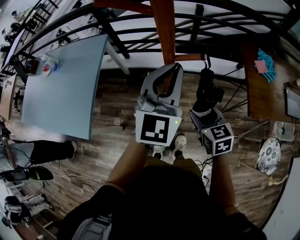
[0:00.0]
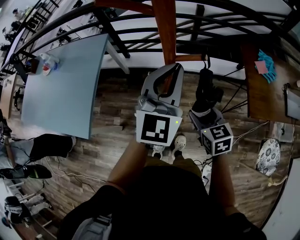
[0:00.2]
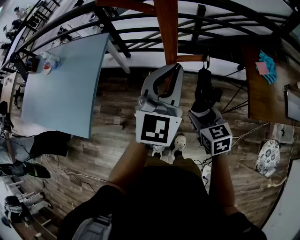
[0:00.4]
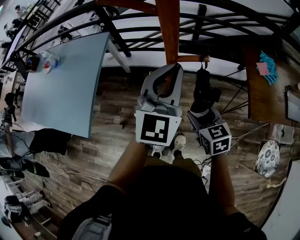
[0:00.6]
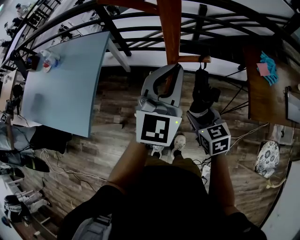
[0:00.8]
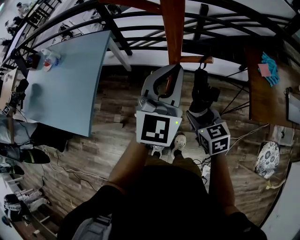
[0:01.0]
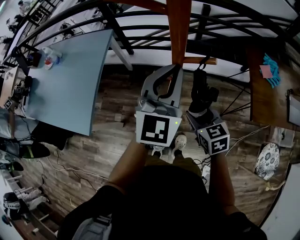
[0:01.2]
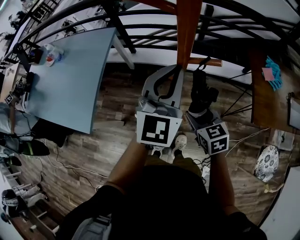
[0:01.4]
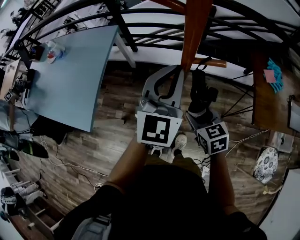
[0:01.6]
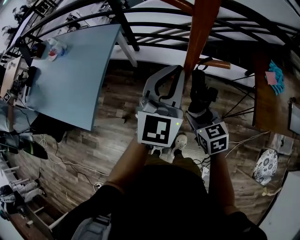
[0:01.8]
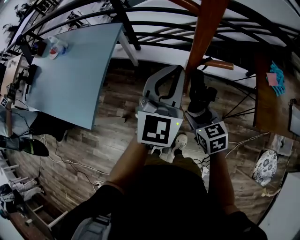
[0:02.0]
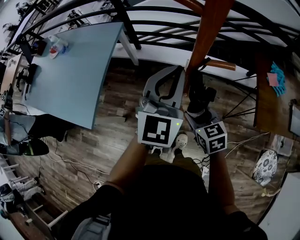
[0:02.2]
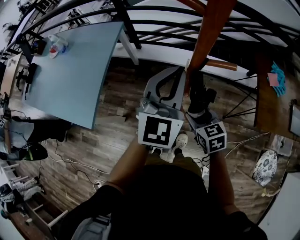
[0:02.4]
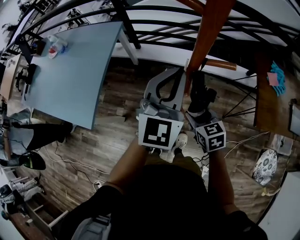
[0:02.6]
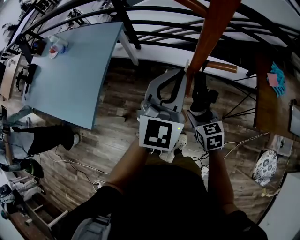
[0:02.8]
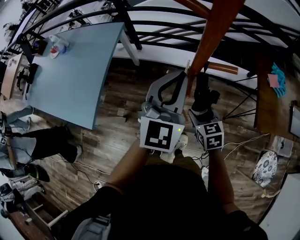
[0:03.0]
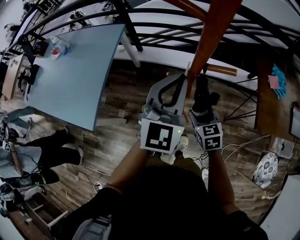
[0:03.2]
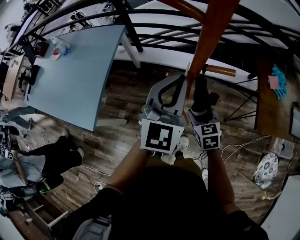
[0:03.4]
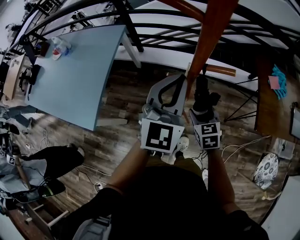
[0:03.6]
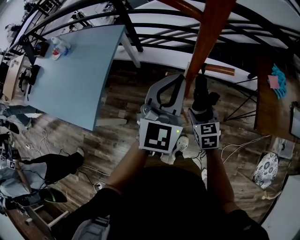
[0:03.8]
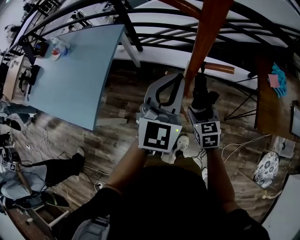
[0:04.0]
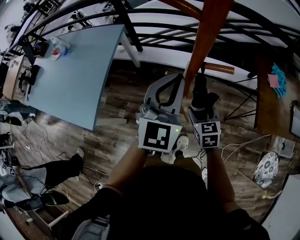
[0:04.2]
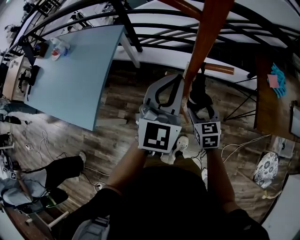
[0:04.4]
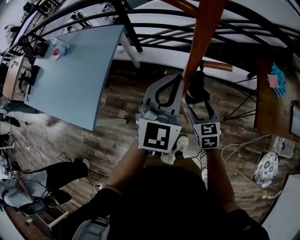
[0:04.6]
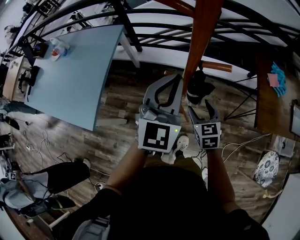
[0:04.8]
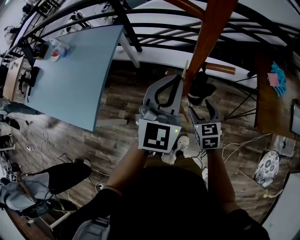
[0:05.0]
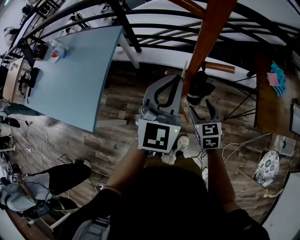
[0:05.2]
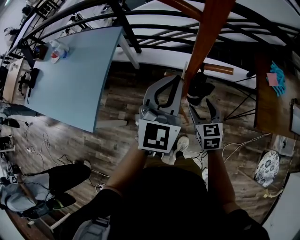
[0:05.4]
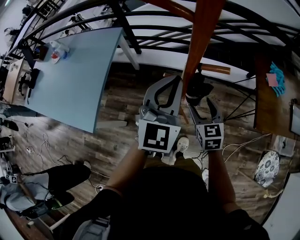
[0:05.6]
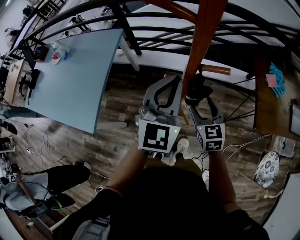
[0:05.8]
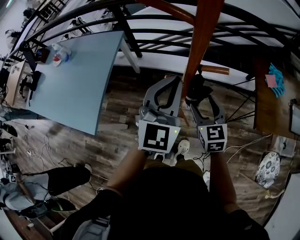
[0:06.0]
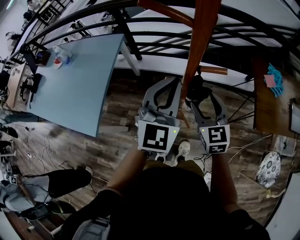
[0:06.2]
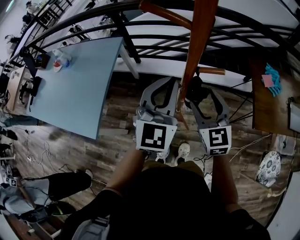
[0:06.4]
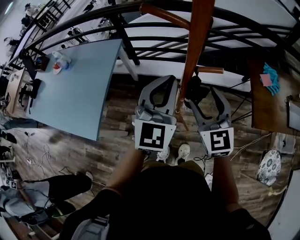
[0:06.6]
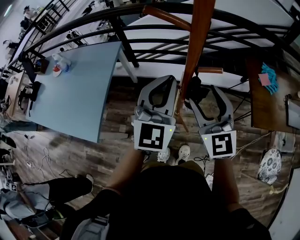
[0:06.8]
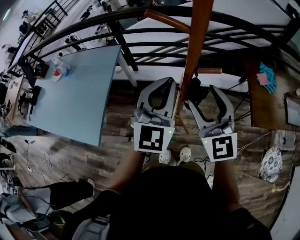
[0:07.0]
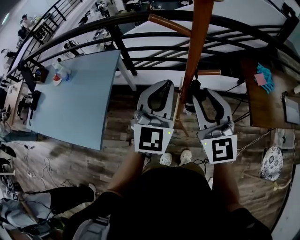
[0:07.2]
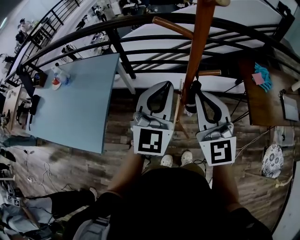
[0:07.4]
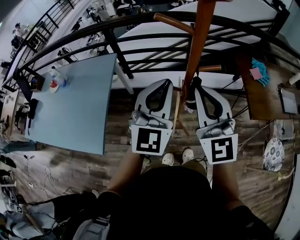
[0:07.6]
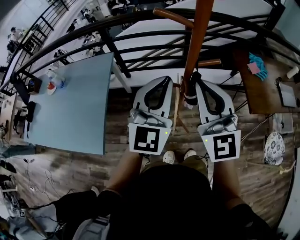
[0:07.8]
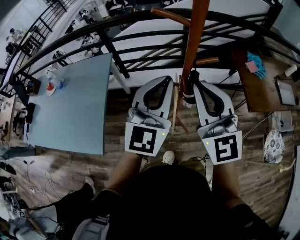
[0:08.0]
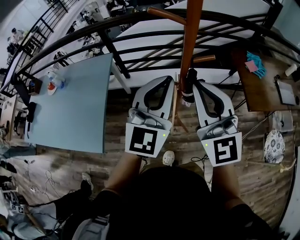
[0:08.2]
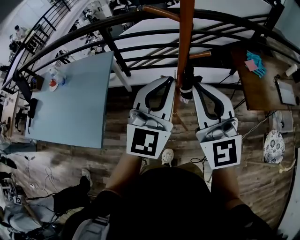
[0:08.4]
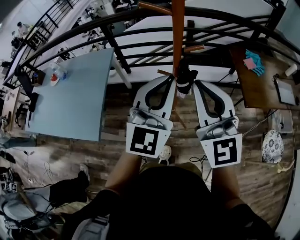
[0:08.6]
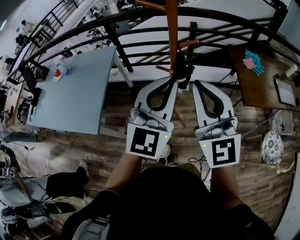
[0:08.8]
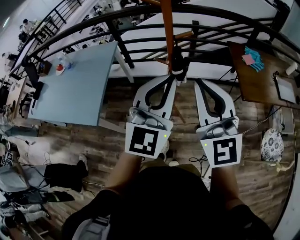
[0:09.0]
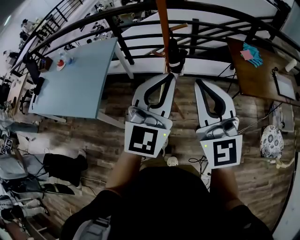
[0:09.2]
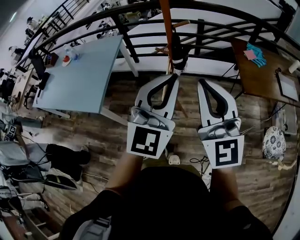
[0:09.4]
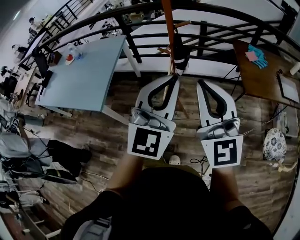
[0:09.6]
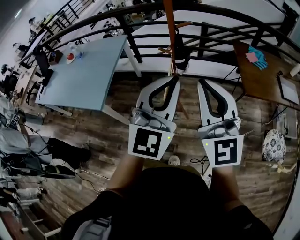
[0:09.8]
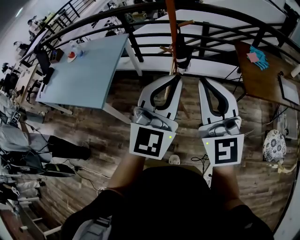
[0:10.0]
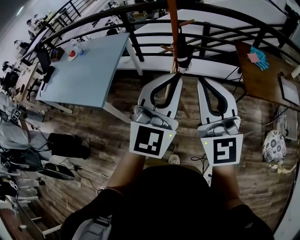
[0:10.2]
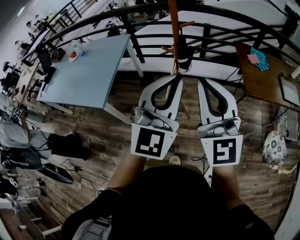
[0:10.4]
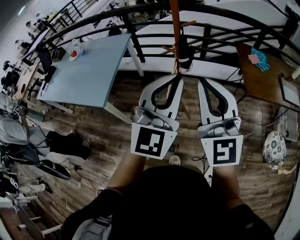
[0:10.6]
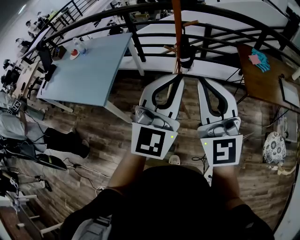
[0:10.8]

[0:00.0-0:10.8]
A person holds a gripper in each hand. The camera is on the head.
0:00.0 to 0:01.6: The right gripper is displaced to the left by roughly 5 cm.
0:01.6 to 0:04.6: There are only small adjustments of the grippers.
0:04.6 to 0:06.2: The right gripper shifts some 10 cm upward.
0:06.2 to 0:07.8: The right gripper heads upward, covering about 20 cm, changes its angle by roughly 30 degrees, and closes up. Meanwhile the left gripper travels upward by roughly 5 cm.
0:07.8 to 0:09.2: Both grippers move backward and to the right, approximately 25 cm.
0:09.2 to 0:10.8: The two grippers go roughly 5 cm backward.

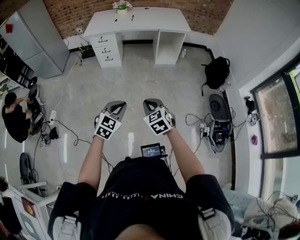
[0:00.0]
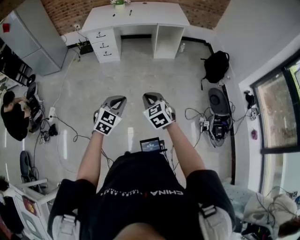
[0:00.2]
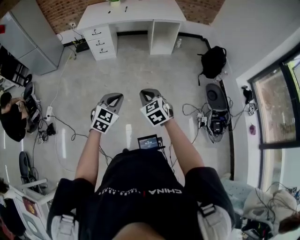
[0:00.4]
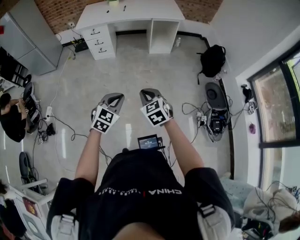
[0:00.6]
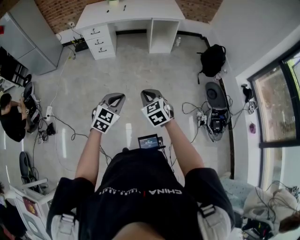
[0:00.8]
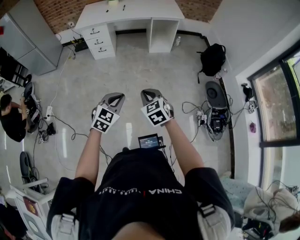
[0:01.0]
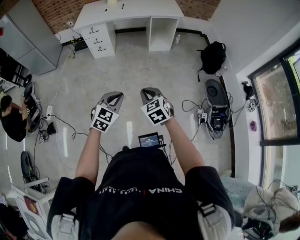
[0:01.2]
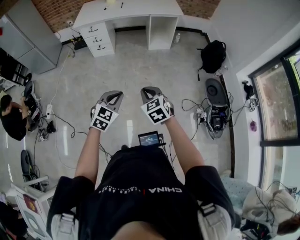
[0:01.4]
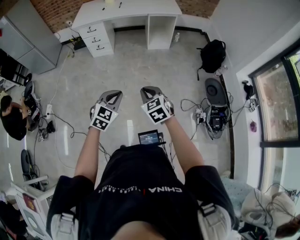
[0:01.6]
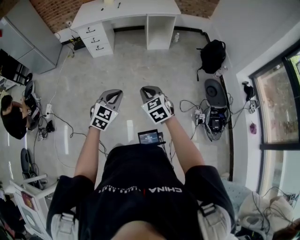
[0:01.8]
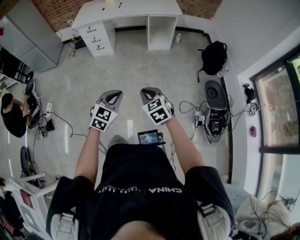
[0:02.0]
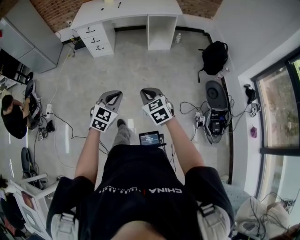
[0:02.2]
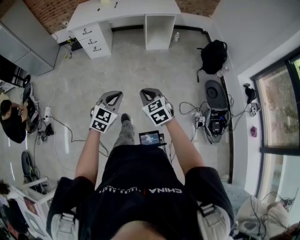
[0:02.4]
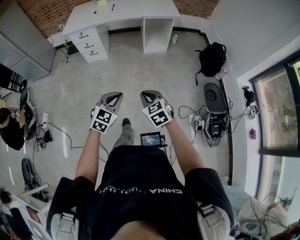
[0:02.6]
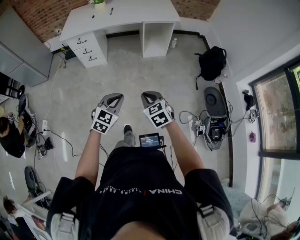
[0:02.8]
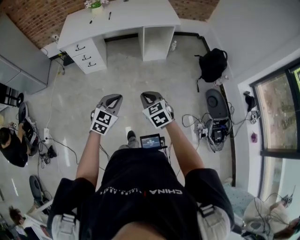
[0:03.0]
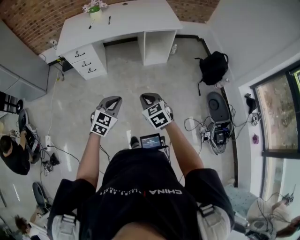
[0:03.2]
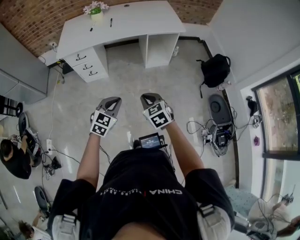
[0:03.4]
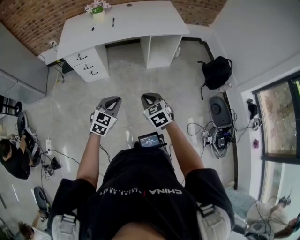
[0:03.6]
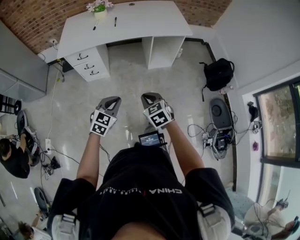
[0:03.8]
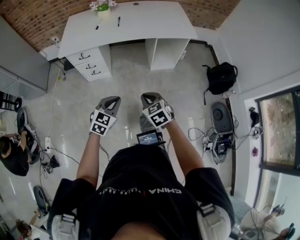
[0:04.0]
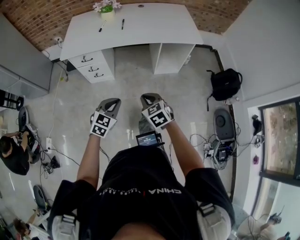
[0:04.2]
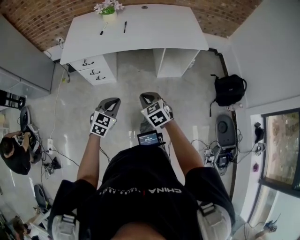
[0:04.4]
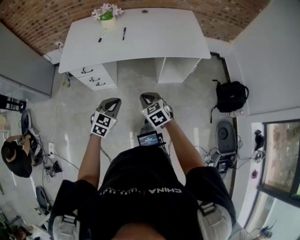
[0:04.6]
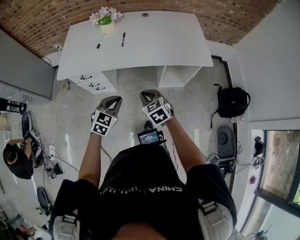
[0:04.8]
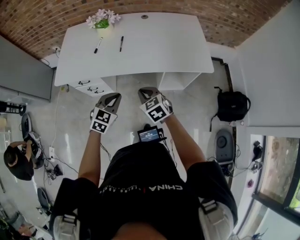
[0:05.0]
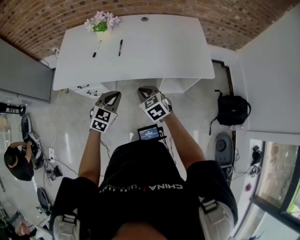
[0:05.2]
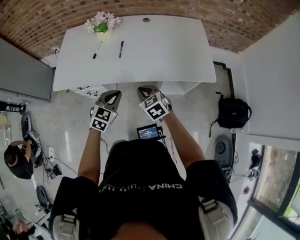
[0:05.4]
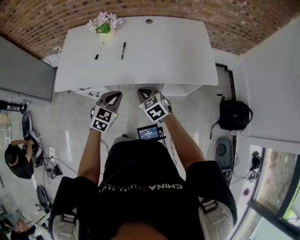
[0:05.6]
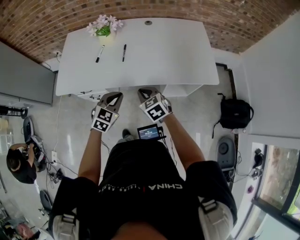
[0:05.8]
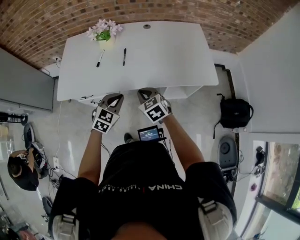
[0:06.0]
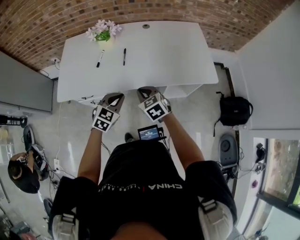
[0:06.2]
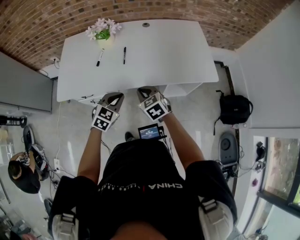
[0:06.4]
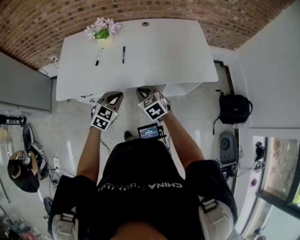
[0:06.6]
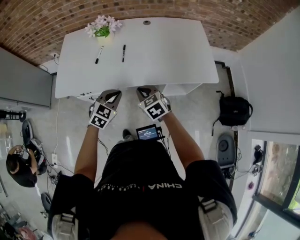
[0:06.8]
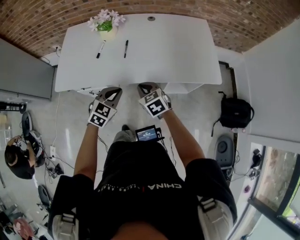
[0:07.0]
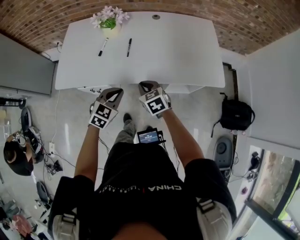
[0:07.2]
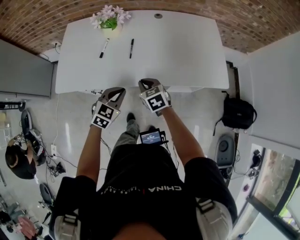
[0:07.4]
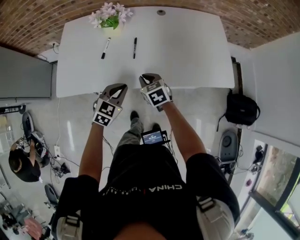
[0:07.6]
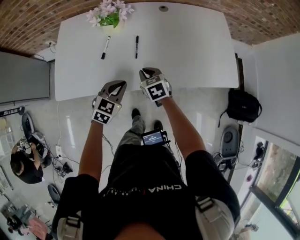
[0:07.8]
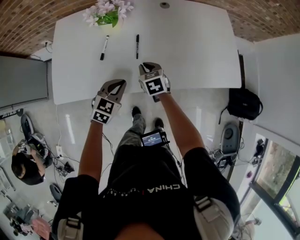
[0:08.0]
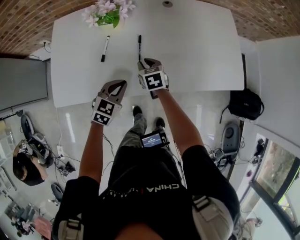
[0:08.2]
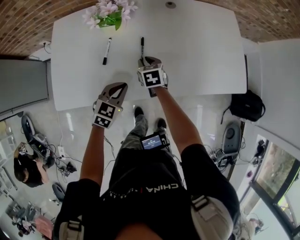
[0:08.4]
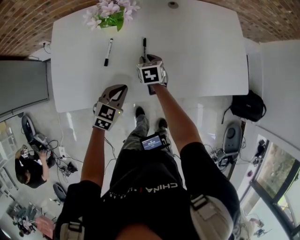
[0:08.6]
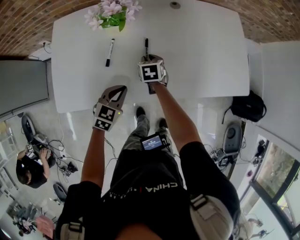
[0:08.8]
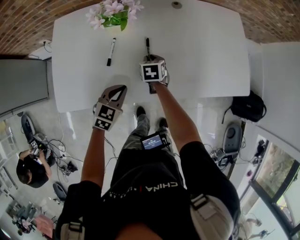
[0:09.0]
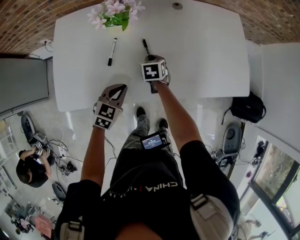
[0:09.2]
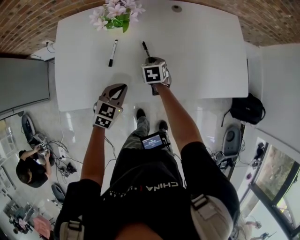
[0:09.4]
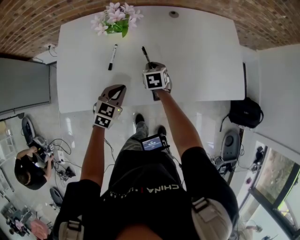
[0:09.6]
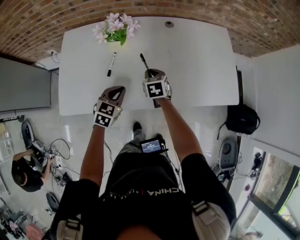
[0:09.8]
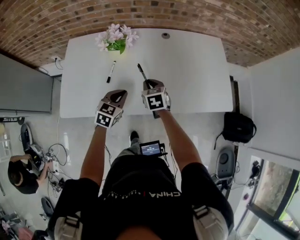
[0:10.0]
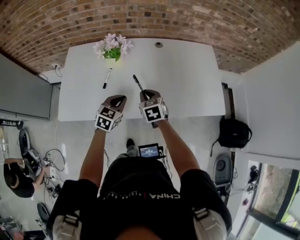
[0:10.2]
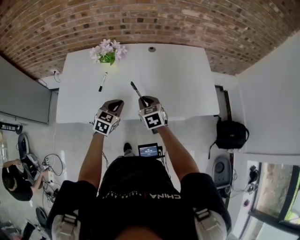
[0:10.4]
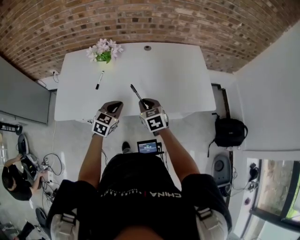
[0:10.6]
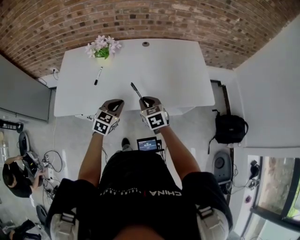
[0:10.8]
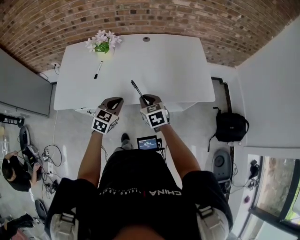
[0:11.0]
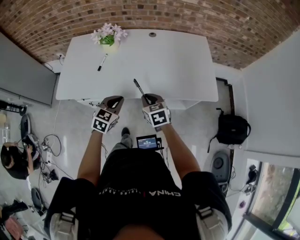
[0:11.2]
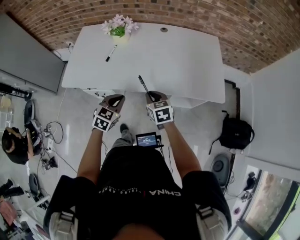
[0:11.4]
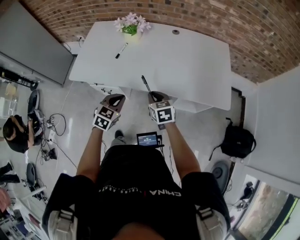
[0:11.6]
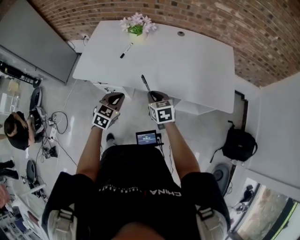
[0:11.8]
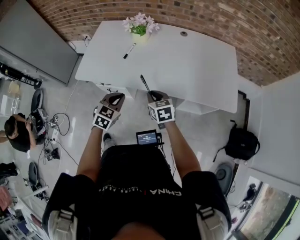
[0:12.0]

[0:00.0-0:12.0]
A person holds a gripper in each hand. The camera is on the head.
0:00.0 to 0:01.6: The grippers both shift to the right by some 10 cm.
0:01.6 to 0:03.0: Both grippers travel together forward, some 30 cm.
0:03.0 to 0:04.4: The right gripper travels forward by approximately 30 cm. Meanwhile the left gripper travels forward and to the left by approximately 35 cm.
0:04.4 to 0:06.0: The two grippers go about 35 cm forward.
0:06.0 to 0:07.6: The left gripper goes about 10 cm forward; the right gripper heads forward, downward and to the left, covering some 15 cm.
0:07.6 to 0:09.0: The right gripper moves forward and downward, about 20 cm, and changes its angle by about 30 degrees; the left gripper shifts approximately 15 cm to the left, forward and downward.
0:09.0 to 0:10.4: The right gripper is displaced upward, backward and to the right by some 25 cm, and turns by about 20 degrees. Meanwhile the left gripper shifts approximately 15 cm upward and to the right.
0:10.4 to 0:12.0: Both grippers move backward, approximately 15 cm.

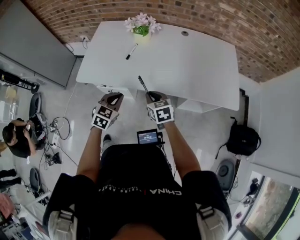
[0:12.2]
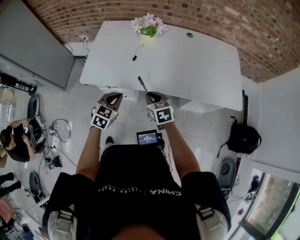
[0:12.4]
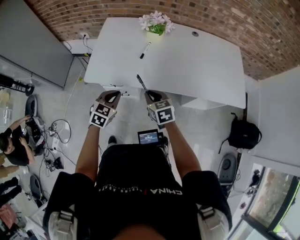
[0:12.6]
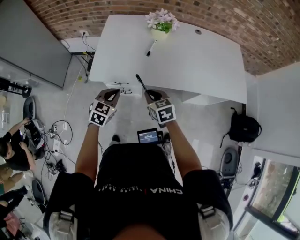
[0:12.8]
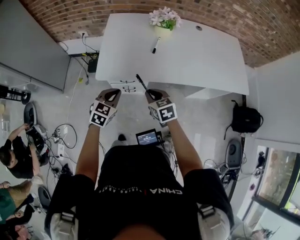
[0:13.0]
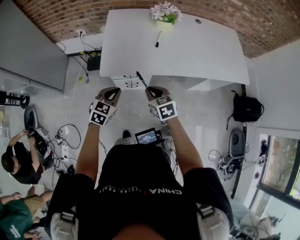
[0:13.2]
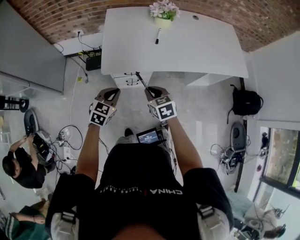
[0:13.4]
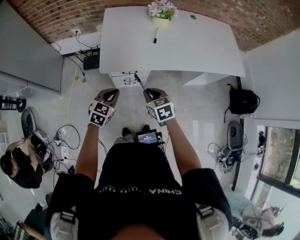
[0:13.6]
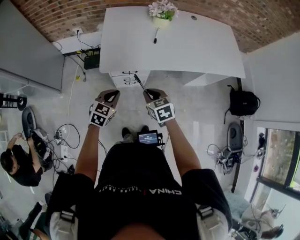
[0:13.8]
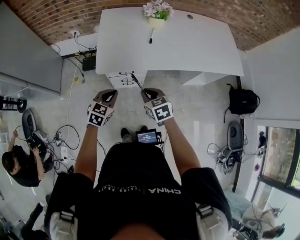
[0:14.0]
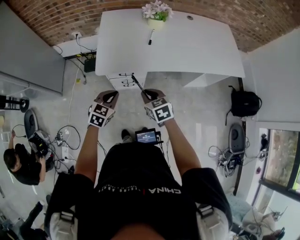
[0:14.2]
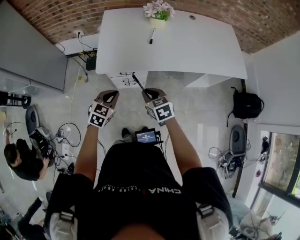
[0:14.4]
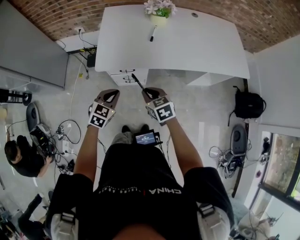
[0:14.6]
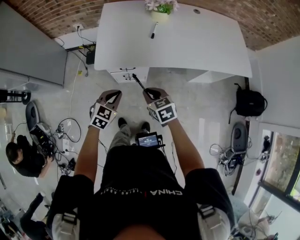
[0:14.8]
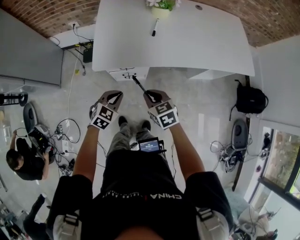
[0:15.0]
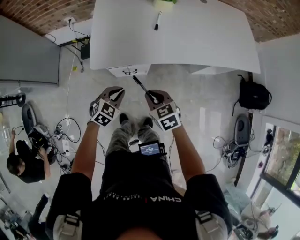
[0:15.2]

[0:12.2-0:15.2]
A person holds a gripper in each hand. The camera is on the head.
0:12.2 to 0:13.8: Both grippers travel together to the left, some 30 cm.
0:13.8 to 0:15.2: Both grippers move downward, some 10 cm.
